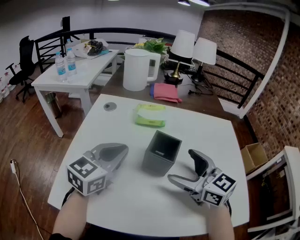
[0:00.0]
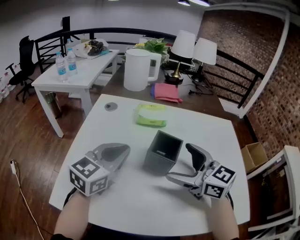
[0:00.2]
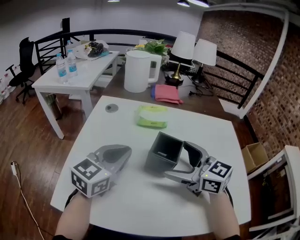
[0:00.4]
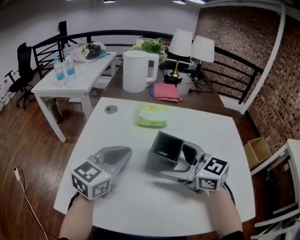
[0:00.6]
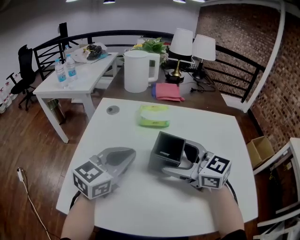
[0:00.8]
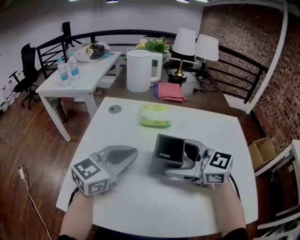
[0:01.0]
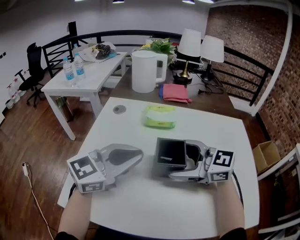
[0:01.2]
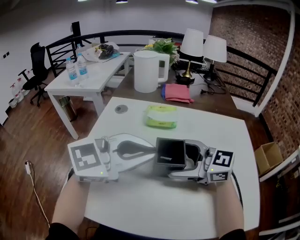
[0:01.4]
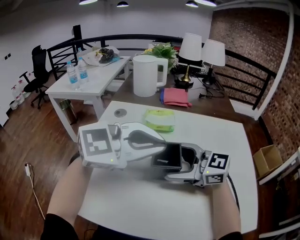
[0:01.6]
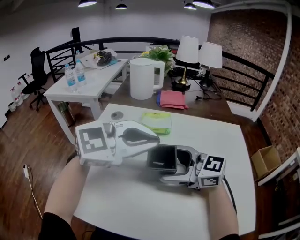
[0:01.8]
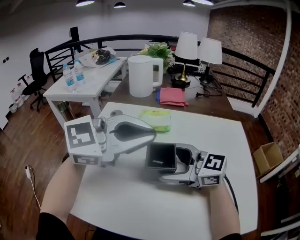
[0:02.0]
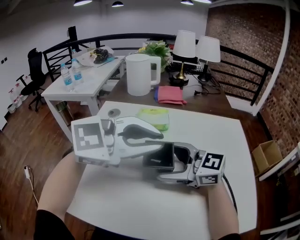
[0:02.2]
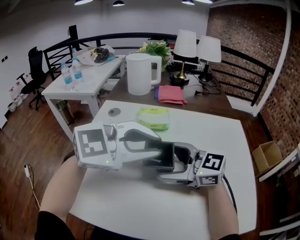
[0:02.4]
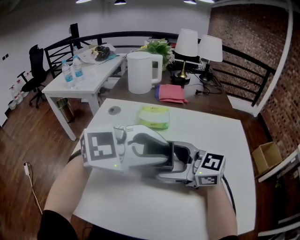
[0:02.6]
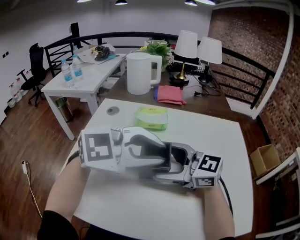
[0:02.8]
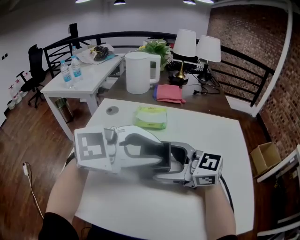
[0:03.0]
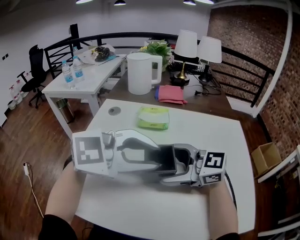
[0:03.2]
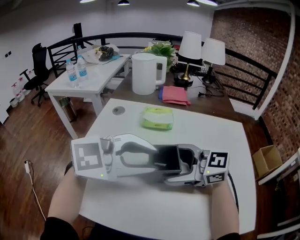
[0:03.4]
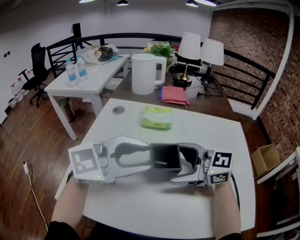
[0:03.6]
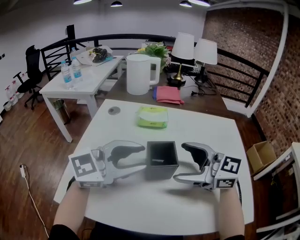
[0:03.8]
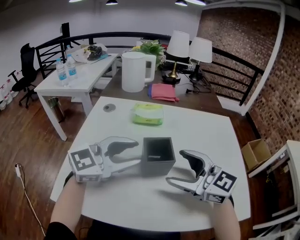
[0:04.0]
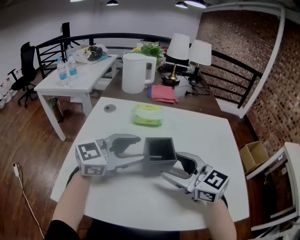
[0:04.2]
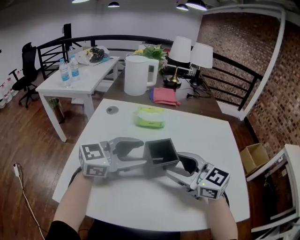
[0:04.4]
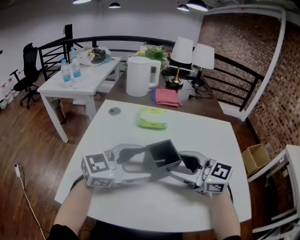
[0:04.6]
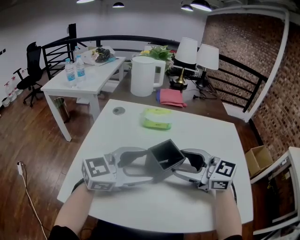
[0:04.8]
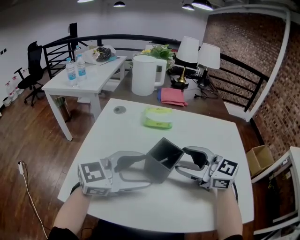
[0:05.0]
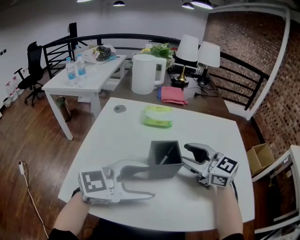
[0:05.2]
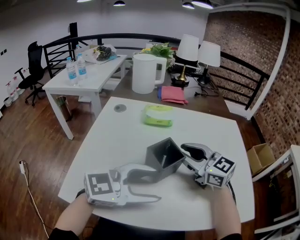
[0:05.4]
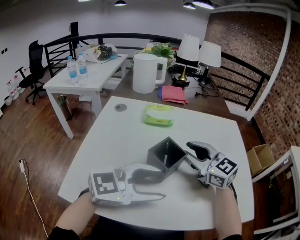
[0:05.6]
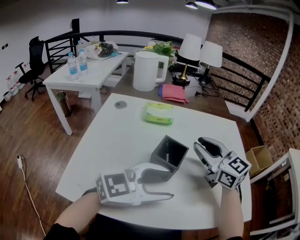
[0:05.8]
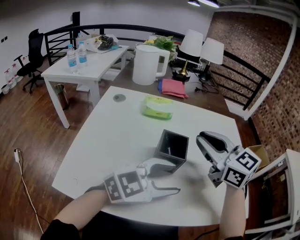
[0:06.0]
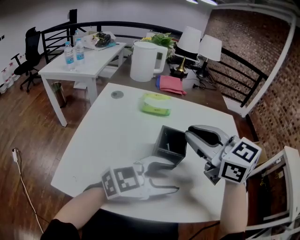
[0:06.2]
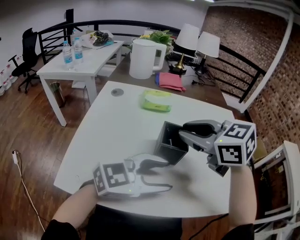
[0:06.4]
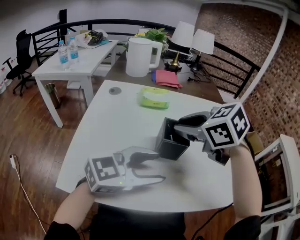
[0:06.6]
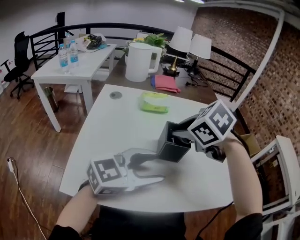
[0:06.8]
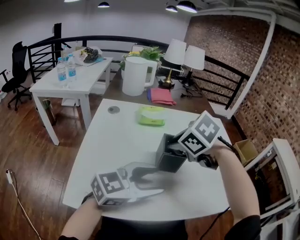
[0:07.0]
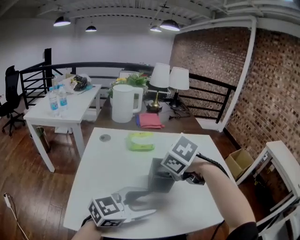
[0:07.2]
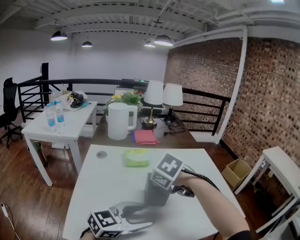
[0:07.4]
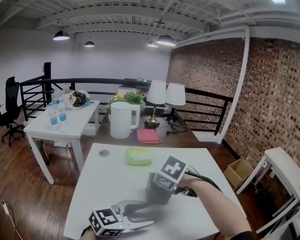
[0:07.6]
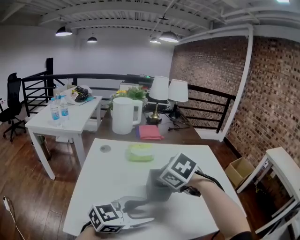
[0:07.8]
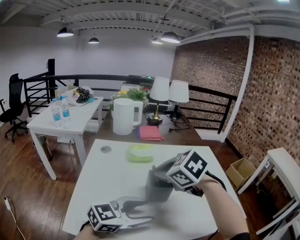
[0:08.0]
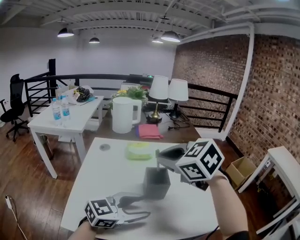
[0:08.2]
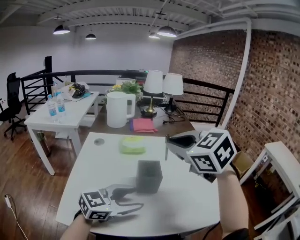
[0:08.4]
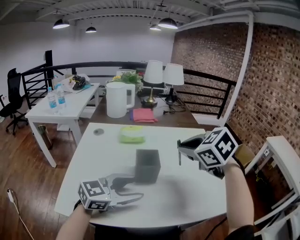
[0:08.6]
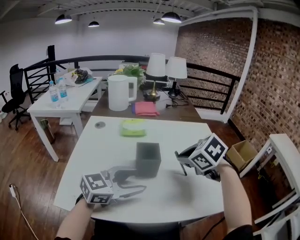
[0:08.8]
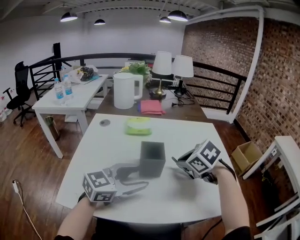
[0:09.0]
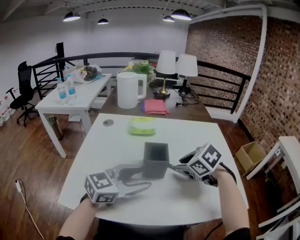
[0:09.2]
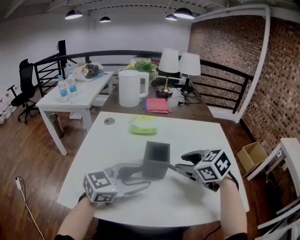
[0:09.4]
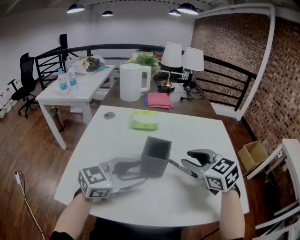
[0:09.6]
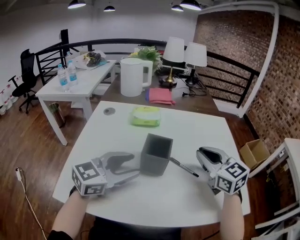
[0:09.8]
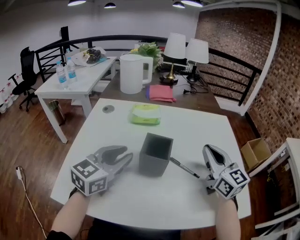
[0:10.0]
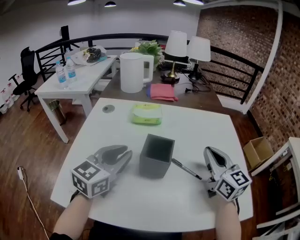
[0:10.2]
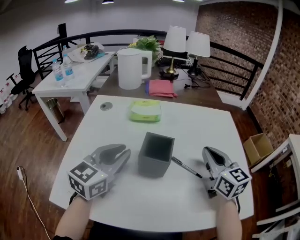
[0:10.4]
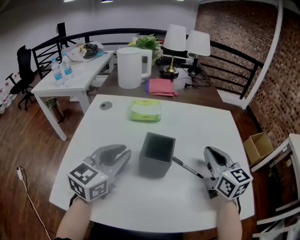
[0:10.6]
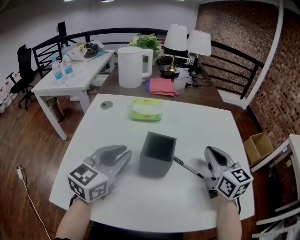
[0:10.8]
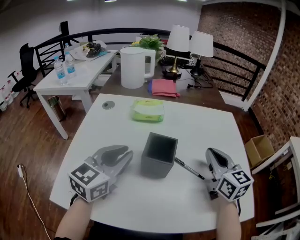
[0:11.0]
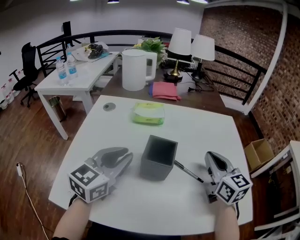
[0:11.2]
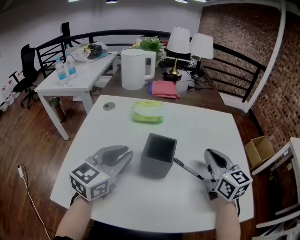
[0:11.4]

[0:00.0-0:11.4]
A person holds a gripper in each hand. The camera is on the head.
0:00.0 to 0:01.4: The right gripper changes place by some 5 cm, and turns by about 30 degrees. Meanwhile the left gripper shifts approximately 10 cm upward, and swivels about 30 degrees.
0:01.4 to 0:02.8: The left gripper moves approximately 5 cm.
0:02.8 to 0:04.2: The left gripper moves about 10 cm, turns by about 30 degrees, and opens. The right gripper ends up about 5 cm from where it was, and swivels roughly 20 degrees.
0:04.2 to 0:05.6: The right gripper changes place by some 5 cm, while the left gripper moves roughly 15 cm.
0:05.6 to 0:07.2: The right gripper travels upward and back again, roughly 10 cm each way, and angles its fingers downward, by about 50 degrees.
0:07.2 to 0:08.6: The right gripper heads to the right and upward, covering some 15 cm, and swivels about 20 degrees.
0:08.6 to 0:10.0: The left gripper goes roughly 10 cm forward and to the left, turns by some 30 degrees, and closes its fingers. The right gripper shifts roughly 10 cm downward and to the right, and tilts its fingers about 40 degrees upward.
0:10.0 to 0:11.4: The grippers stay close to where they were, moving slightly.

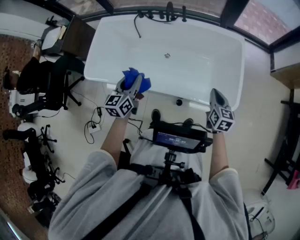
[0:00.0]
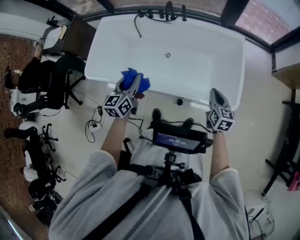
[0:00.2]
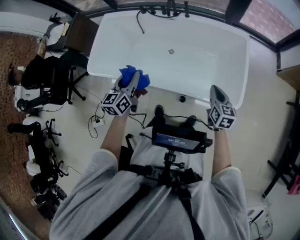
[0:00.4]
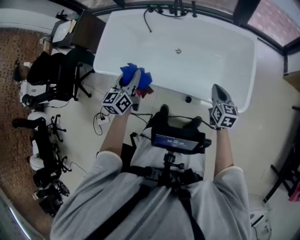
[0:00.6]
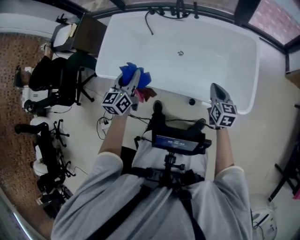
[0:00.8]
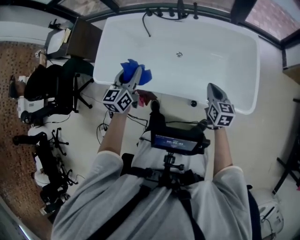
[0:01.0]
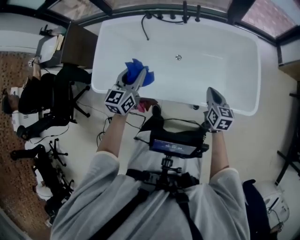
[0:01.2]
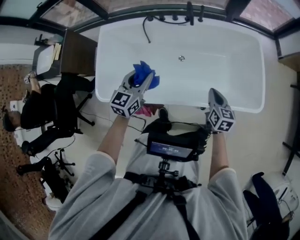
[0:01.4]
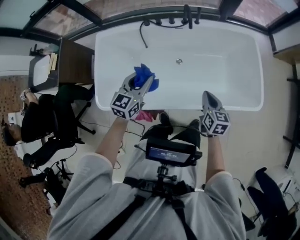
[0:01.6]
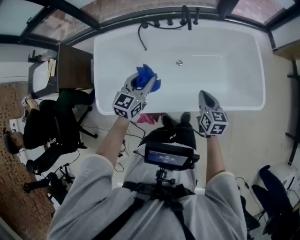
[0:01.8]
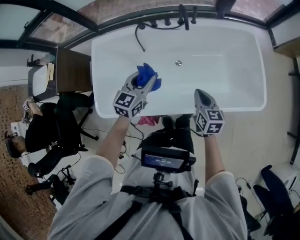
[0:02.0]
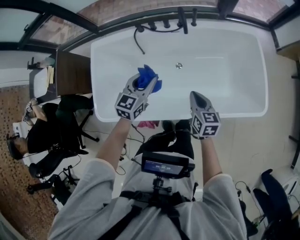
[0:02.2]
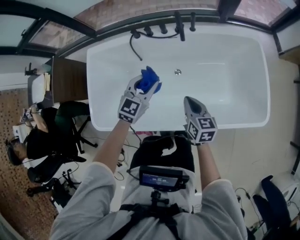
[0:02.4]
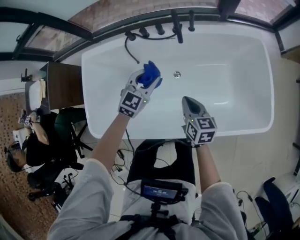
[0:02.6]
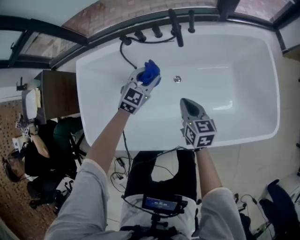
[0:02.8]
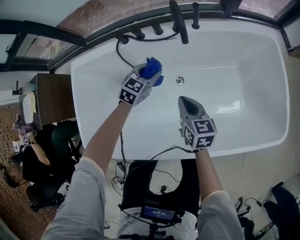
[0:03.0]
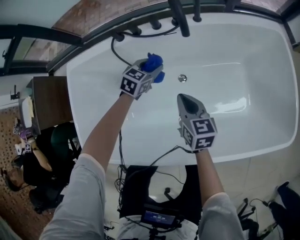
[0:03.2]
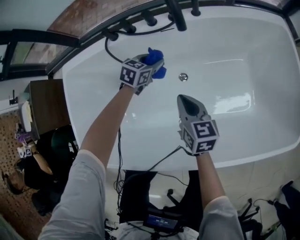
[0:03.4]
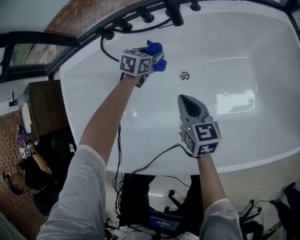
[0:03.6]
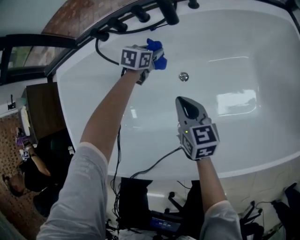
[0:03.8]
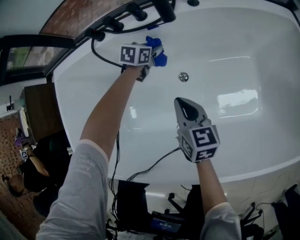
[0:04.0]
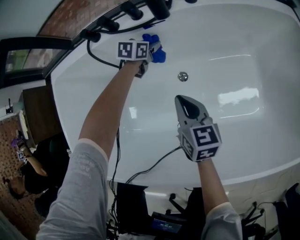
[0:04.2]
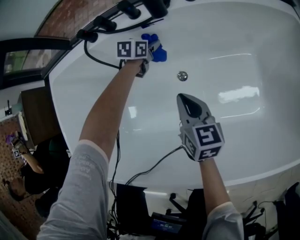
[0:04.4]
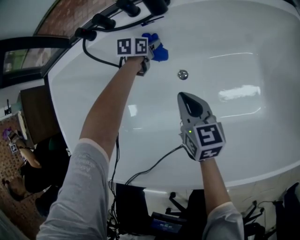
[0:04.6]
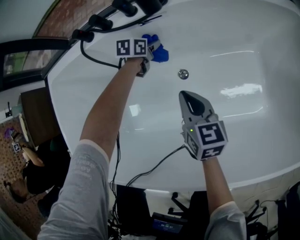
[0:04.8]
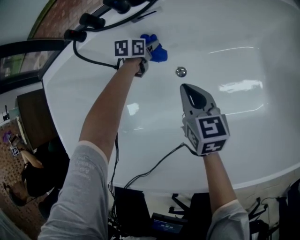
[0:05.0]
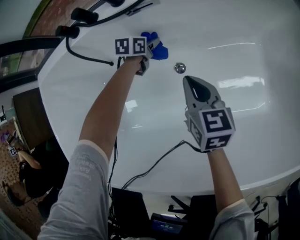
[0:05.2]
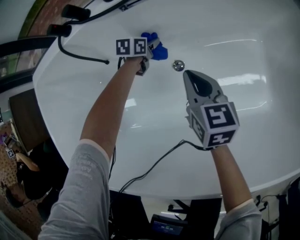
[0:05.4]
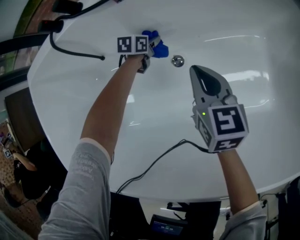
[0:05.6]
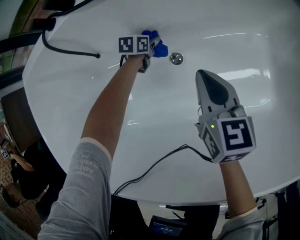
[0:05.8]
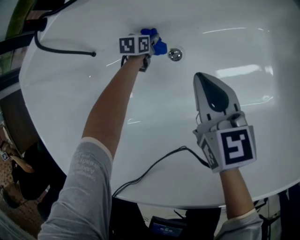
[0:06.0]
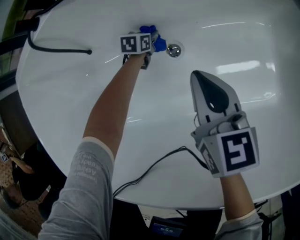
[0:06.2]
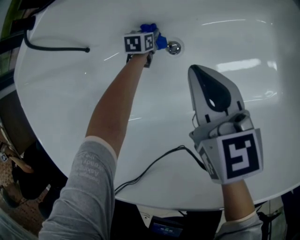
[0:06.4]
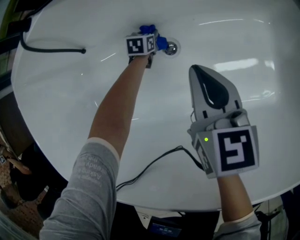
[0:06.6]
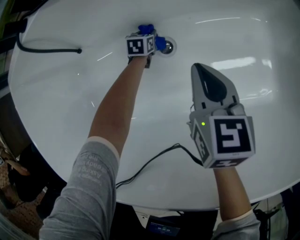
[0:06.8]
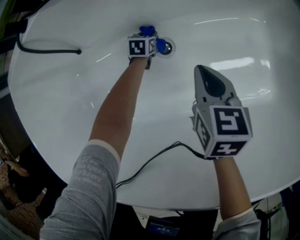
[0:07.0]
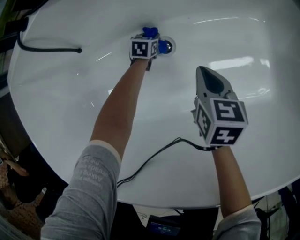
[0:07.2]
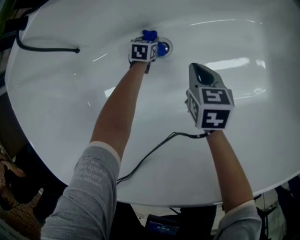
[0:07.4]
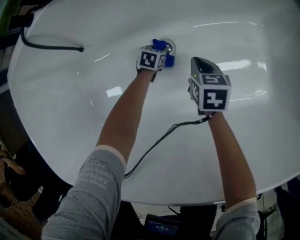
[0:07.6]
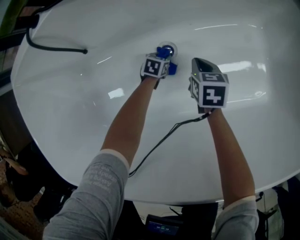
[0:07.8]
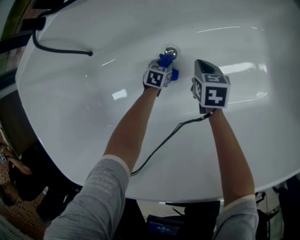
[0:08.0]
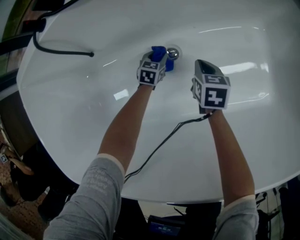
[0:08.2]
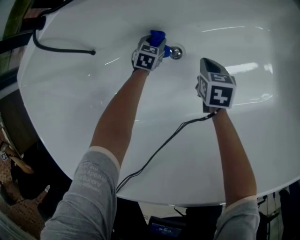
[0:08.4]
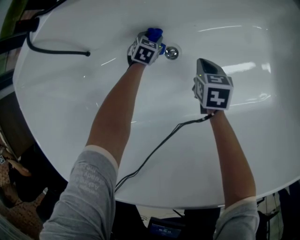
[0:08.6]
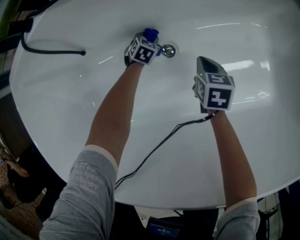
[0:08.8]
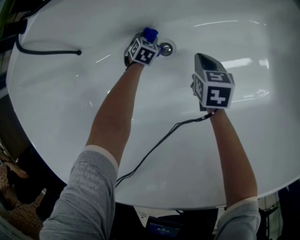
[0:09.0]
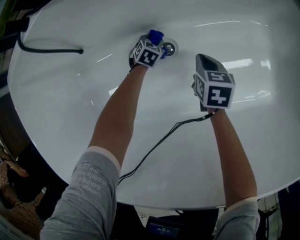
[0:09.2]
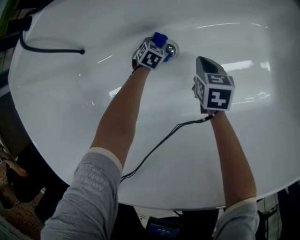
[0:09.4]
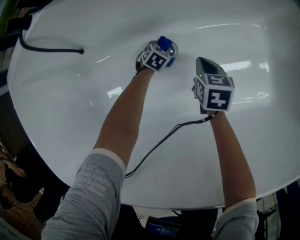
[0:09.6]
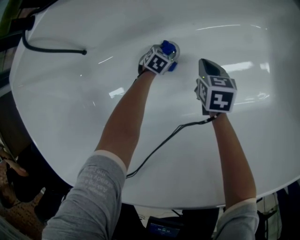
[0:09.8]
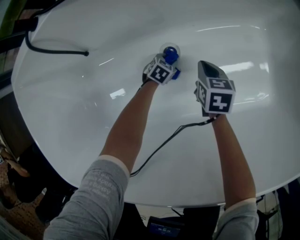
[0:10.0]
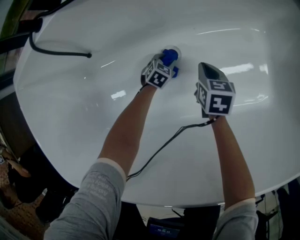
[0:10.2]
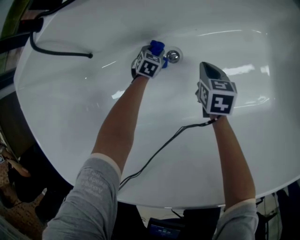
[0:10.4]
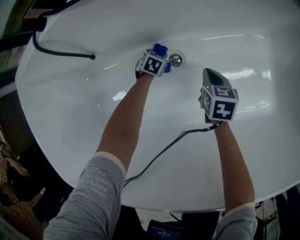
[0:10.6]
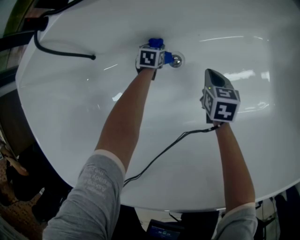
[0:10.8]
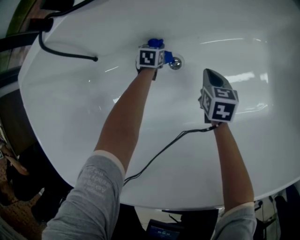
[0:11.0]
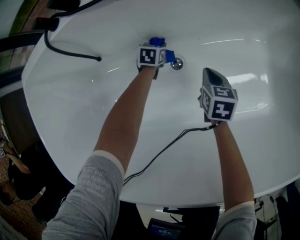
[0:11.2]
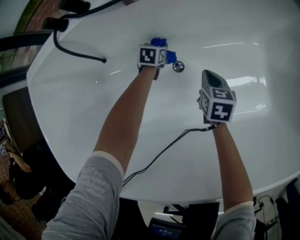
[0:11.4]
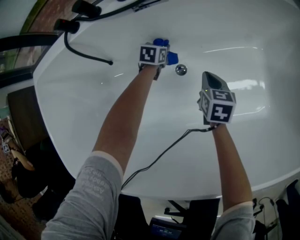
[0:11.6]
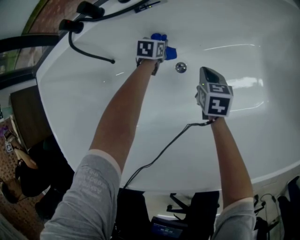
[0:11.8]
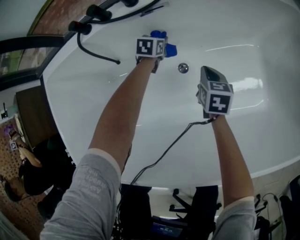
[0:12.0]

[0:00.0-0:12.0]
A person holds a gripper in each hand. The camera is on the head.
0:00.0 to 0:01.6: The left gripper is displaced forward and to the left by approximately 25 cm, and changes its angle by about 30 degrees; the right gripper goes approximately 30 cm to the left.
0:01.6 to 0:03.0: The left gripper goes some 40 cm downward and forward, and changes its angle by approximately 30 degrees, while the right gripper heads downward, forward and to the left, covering approximately 30 cm.
0:03.0 to 0:04.4: The right gripper travels downward by some 15 cm. The left gripper moves downward and forward, some 30 cm, and swivels approximately 30 degrees.
0:04.4 to 0:06.0: The right gripper heads to the right and downward, covering about 10 cm. Meanwhile the left gripper travels downward by about 20 cm.
0:06.0 to 0:07.6: The right gripper heads downward, covering approximately 15 cm, and changes its angle by approximately 20 degrees. The left gripper is displaced downward, backward and to the right by some 15 cm.
0:07.6 to 0:09.0: The left gripper travels forward by roughly 5 cm, and rotates approximately 30 degrees.
0:09.0 to 0:10.4: The left gripper travels backward and back again, some 10 cm each way.
0:10.4 to 0:12.0: The left gripper shifts roughly 25 cm upward and forward, and changes its angle by about 20 degrees, while the right gripper goes some 15 cm upward.
